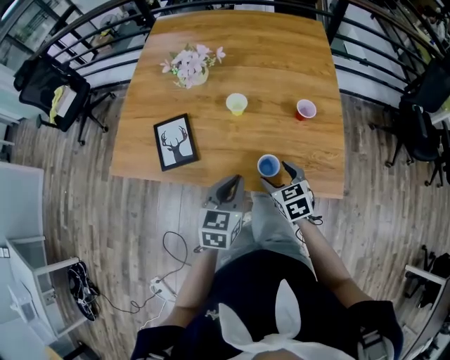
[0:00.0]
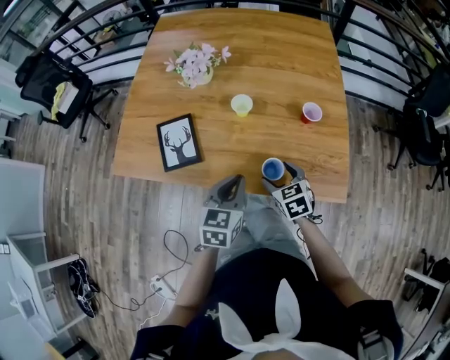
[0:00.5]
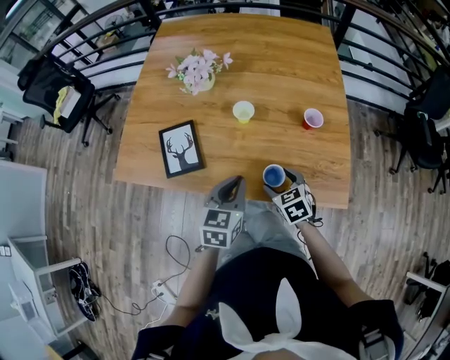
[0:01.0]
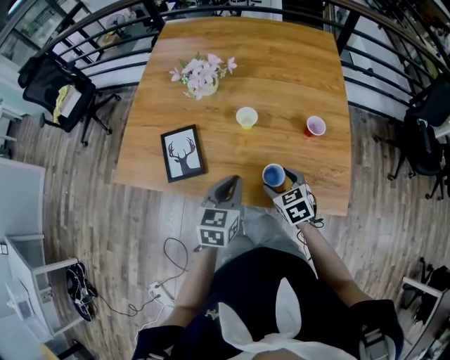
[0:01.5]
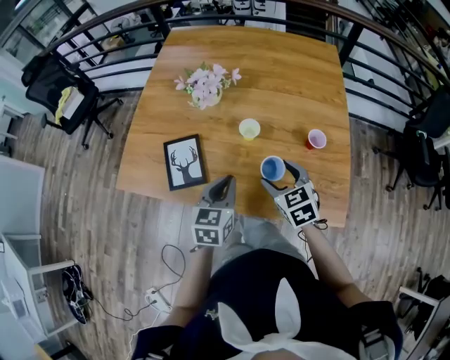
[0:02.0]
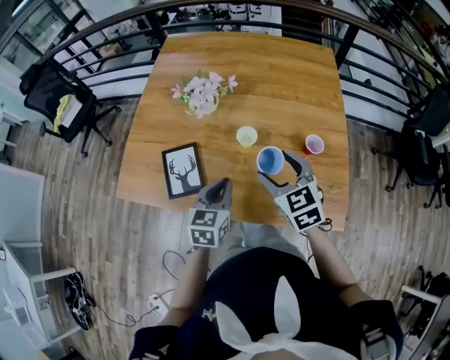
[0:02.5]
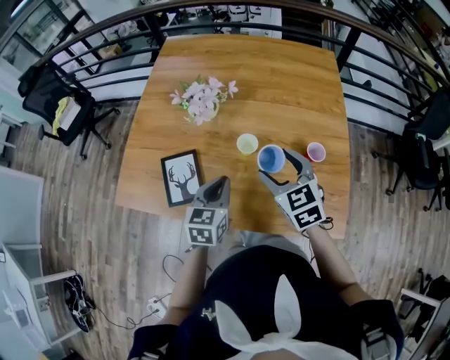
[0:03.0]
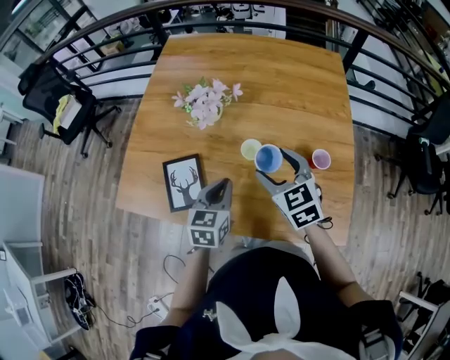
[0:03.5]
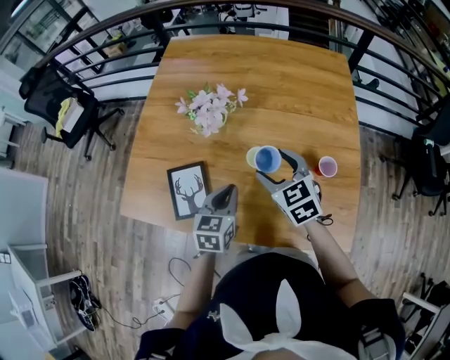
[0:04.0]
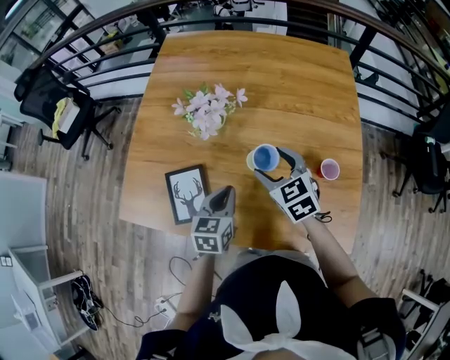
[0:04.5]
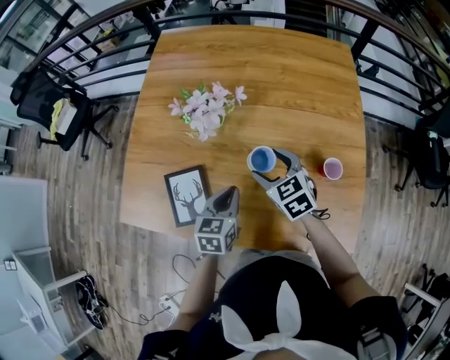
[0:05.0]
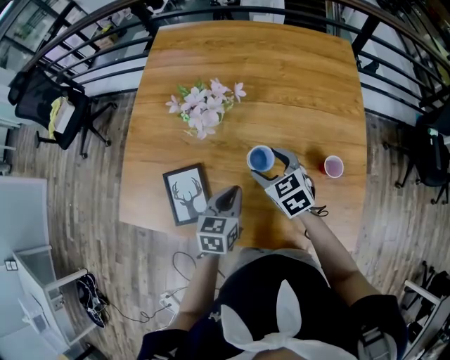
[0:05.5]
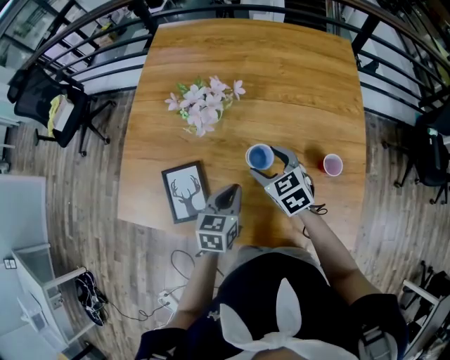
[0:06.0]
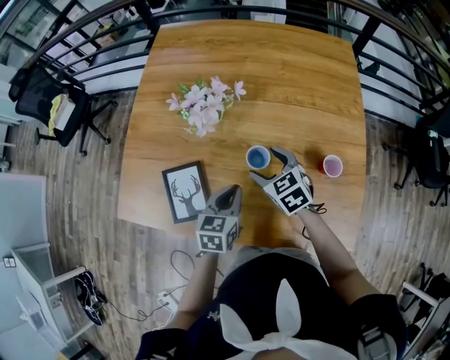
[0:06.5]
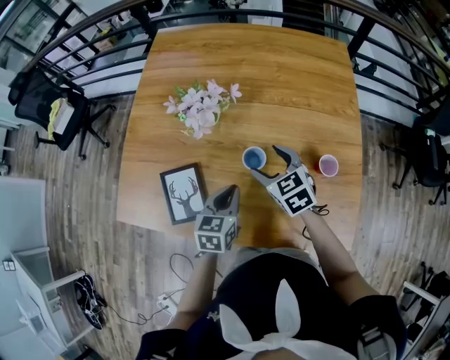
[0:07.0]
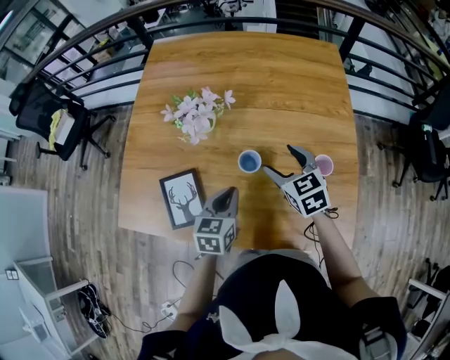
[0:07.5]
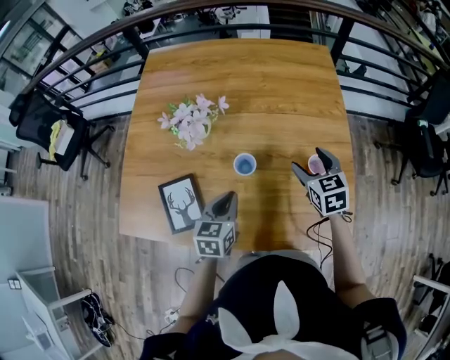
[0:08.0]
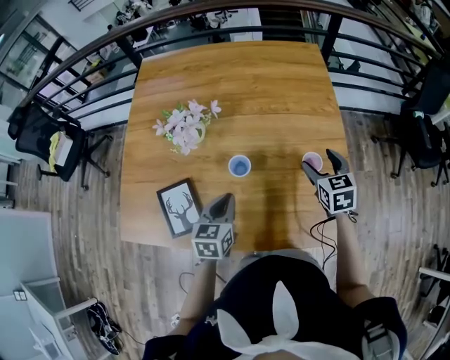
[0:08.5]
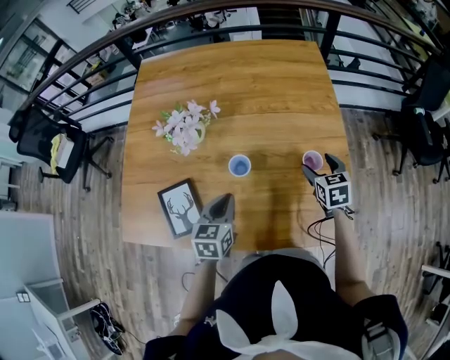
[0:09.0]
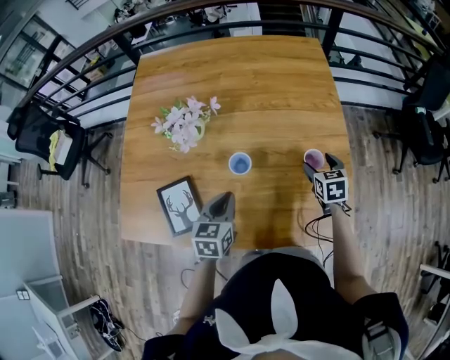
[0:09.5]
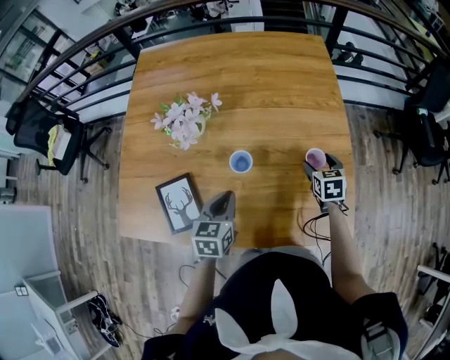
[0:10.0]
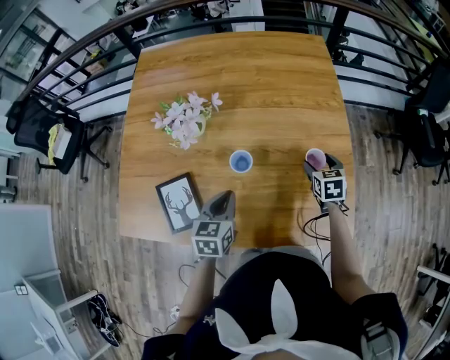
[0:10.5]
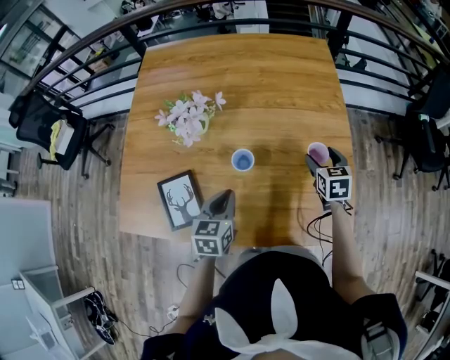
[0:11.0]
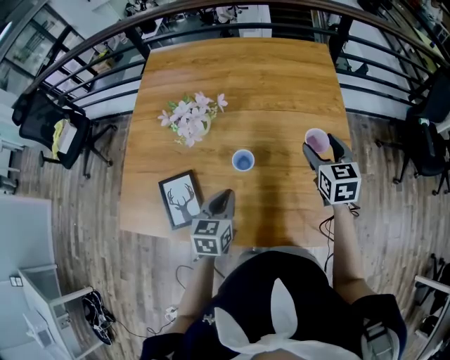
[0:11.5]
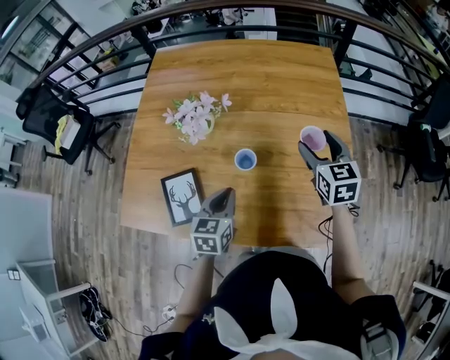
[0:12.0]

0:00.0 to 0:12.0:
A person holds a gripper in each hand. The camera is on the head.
0:00.0 to 0:02.0: The left gripper travels forward and to the left by roughly 10 cm, while the right gripper is displaced forward and upward by approximately 10 cm.
0:02.0 to 0:04.0: Both grippers move forward, approximately 10 cm.
0:04.0 to 0:06.0: The right gripper shifts about 10 cm downward. Meanwhile the left gripper changes place by roughly 5 cm.
0:06.0 to 0:08.0: The right gripper is displaced to the right by approximately 20 cm, and rotates about 20 degrees.
0:08.0 to 0:10.0: The right gripper heads downward and to the right, covering about 15 cm.
0:10.0 to 0:12.0: The right gripper goes about 20 cm upward, and changes its angle by approximately 20 degrees.

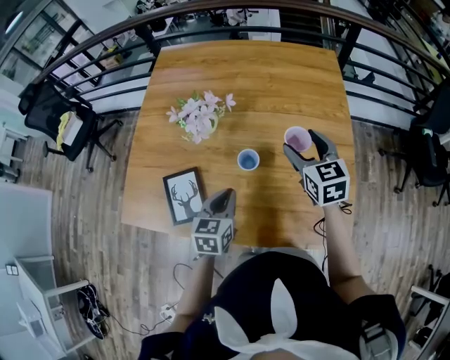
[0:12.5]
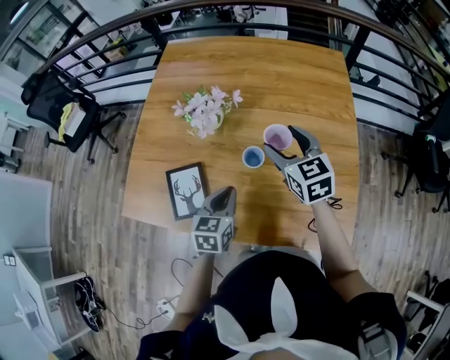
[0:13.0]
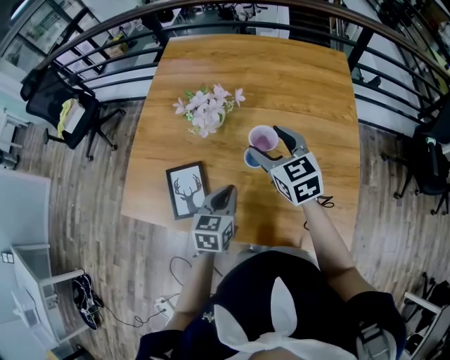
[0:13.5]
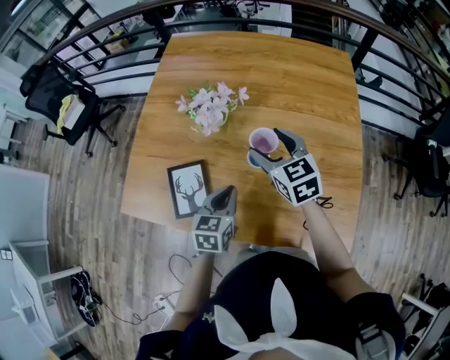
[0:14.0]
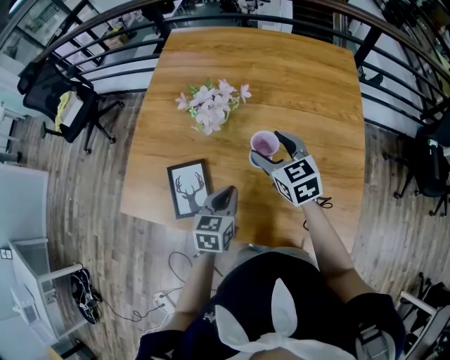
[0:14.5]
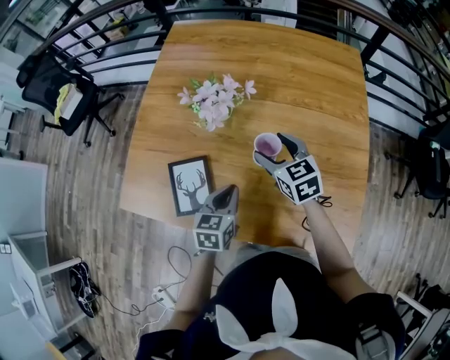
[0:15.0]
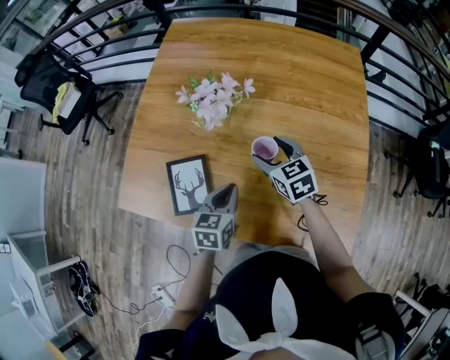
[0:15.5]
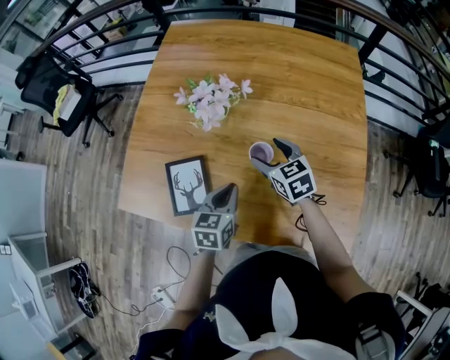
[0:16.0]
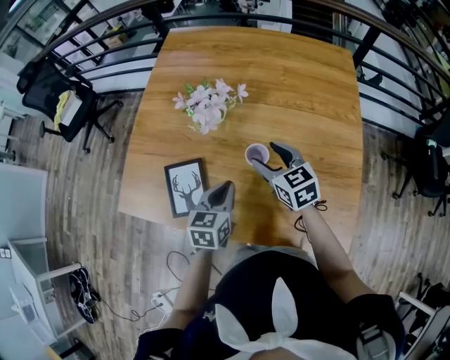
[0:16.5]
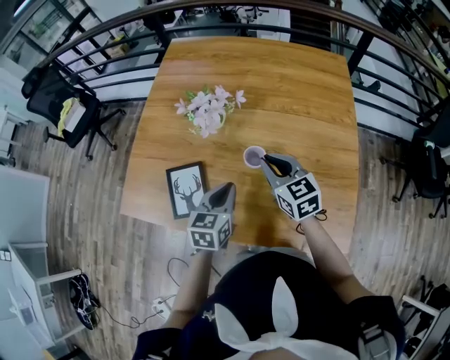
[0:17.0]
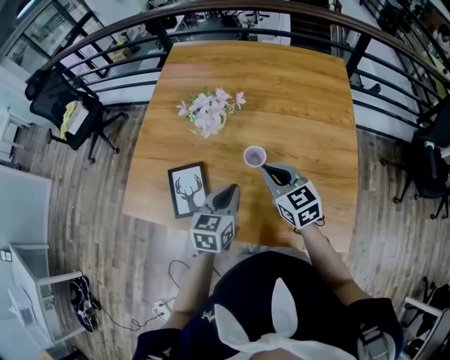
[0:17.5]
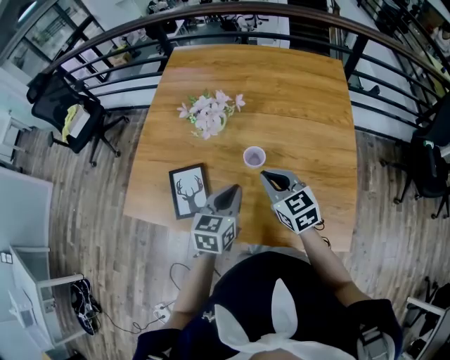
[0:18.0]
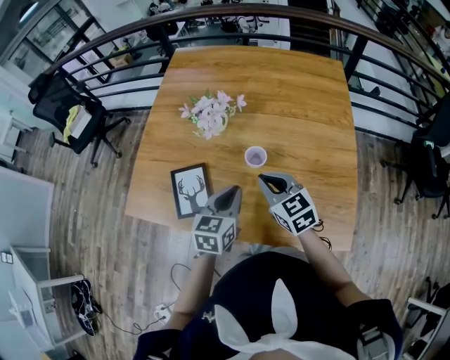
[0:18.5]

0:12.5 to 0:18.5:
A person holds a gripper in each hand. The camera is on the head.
0:12.5 to 0:14.5: The right gripper moves to the left, approximately 15 cm.
0:16.5 to 0:18.5: The left gripper is displaced upward by some 5 cm. Meanwhile the right gripper heads backward, covering some 10 cm, and closes up.

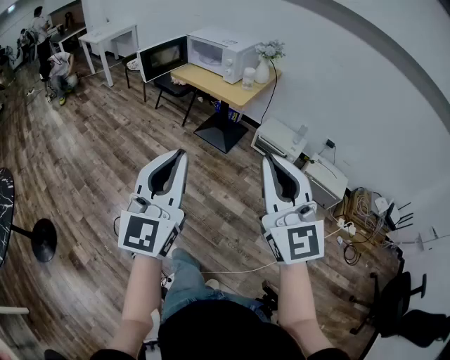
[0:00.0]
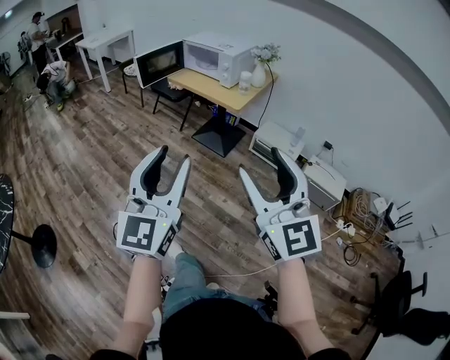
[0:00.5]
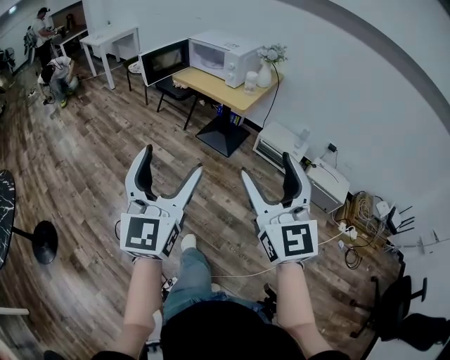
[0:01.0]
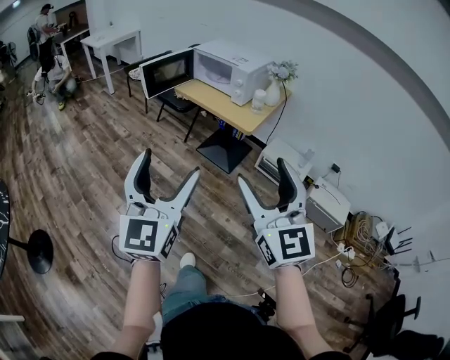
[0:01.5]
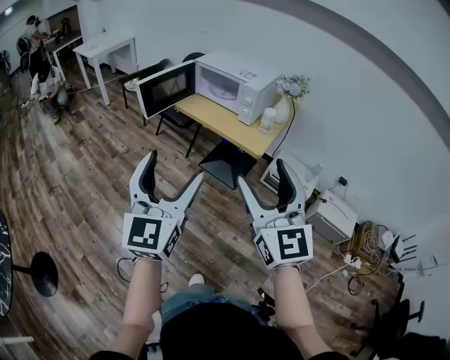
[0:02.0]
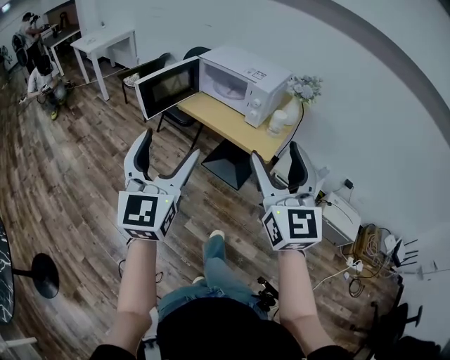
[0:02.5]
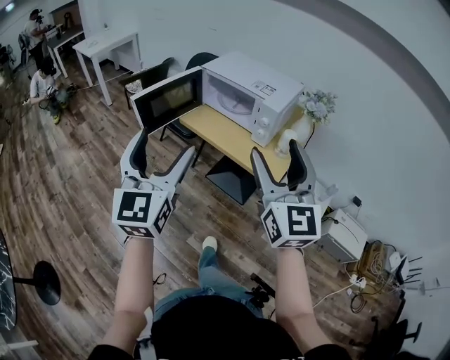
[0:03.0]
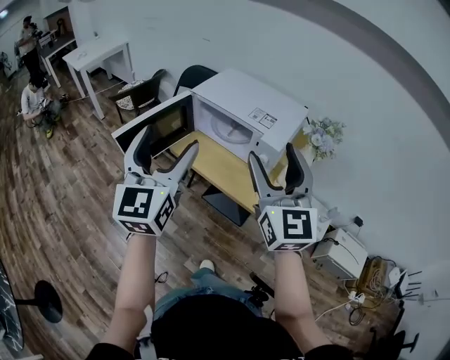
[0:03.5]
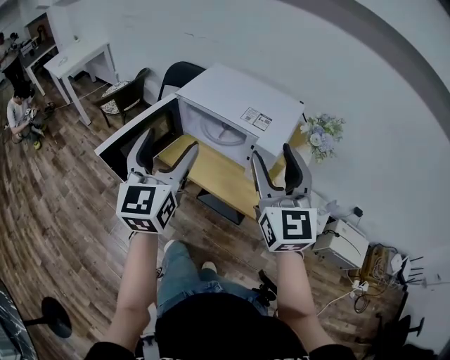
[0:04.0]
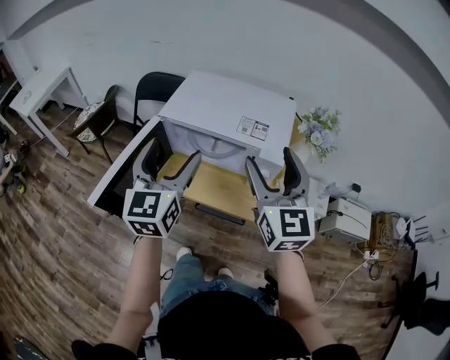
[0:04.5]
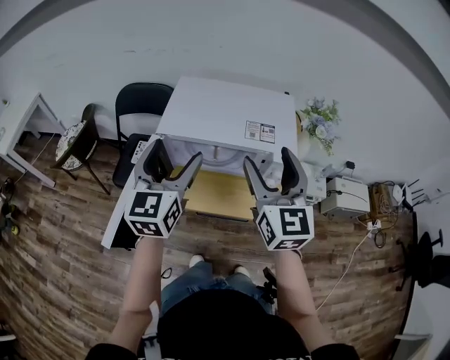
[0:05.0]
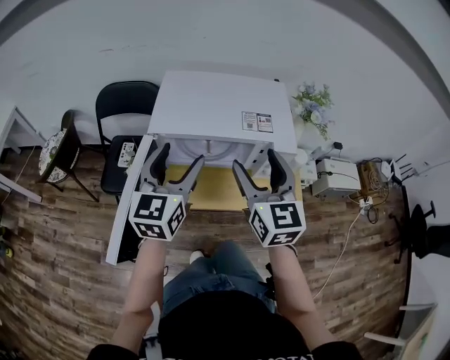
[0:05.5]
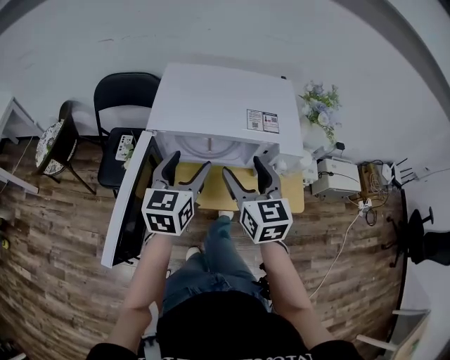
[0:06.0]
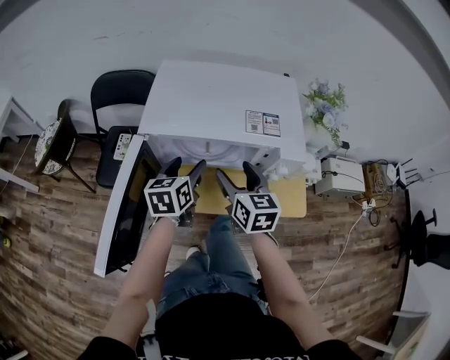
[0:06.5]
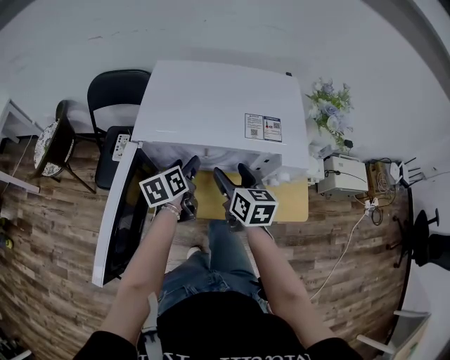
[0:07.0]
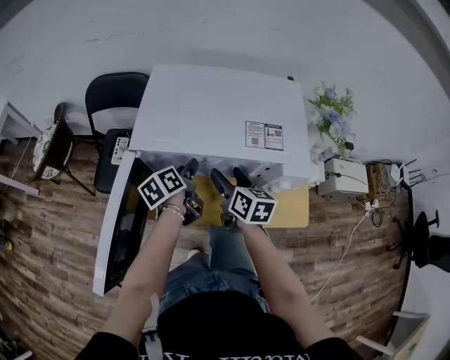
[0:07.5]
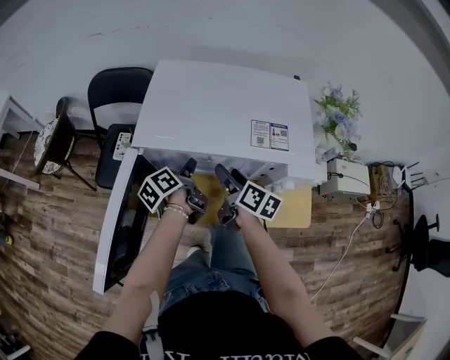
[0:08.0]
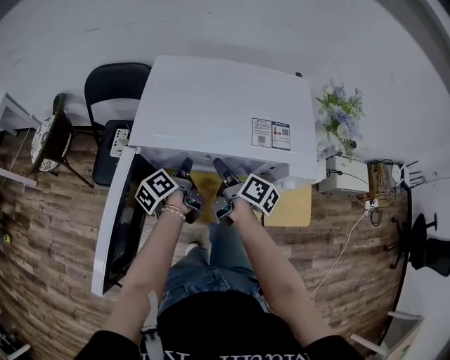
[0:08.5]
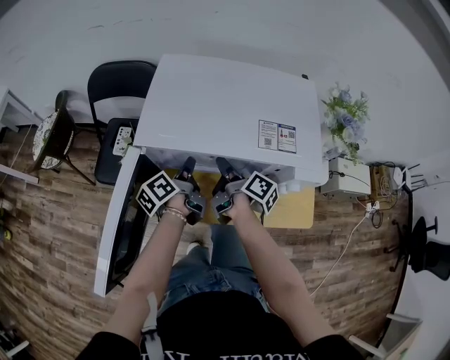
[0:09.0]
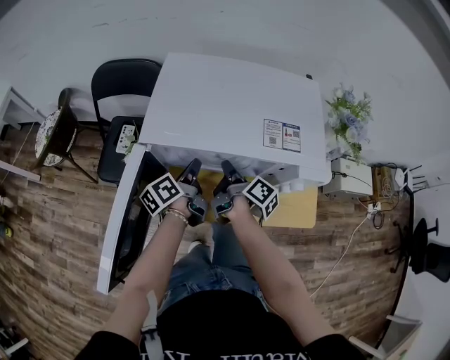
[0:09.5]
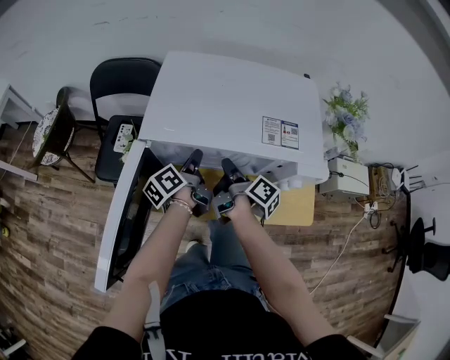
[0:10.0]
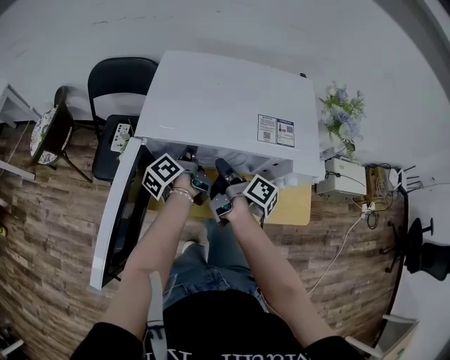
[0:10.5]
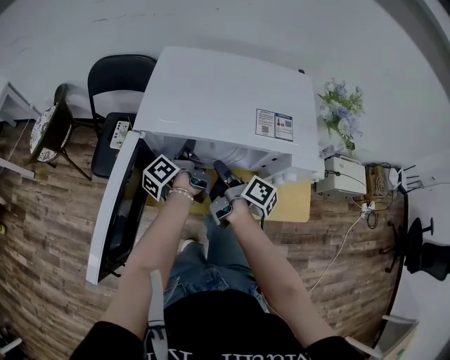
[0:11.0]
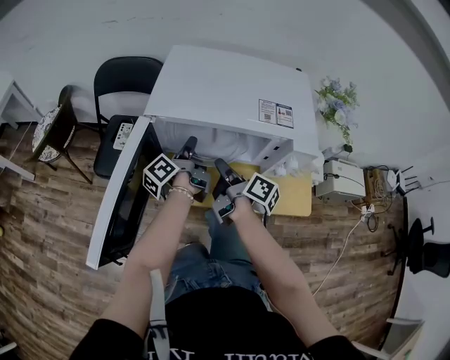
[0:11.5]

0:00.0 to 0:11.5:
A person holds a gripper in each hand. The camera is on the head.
0:00.0 to 0:02.0: Both grippers travel together forward, roughly 30 cm. The right gripper opens up. Meanwhile the left gripper opens its fingers.
0:02.0 to 0:04.0: The two grippers travel together, forward, roughly 50 cm.
0:04.0 to 0:06.0: The right gripper ends up some 25 cm from where it was, and turns by approximately 30 degrees. The left gripper ends up approximately 25 cm from where it was, and rotates about 40 degrees.
0:06.0 to 0:07.5: The grippers both shift downward and forward by some 20 cm. The right gripper changes its angle by about 30 degrees. Meanwhile the left gripper rolls counterclockwise, seen from behind, by roughly 50 degrees.
0:07.5 to 0:09.5: The left gripper closes up. Meanwhile the right gripper rolls clockwise, seen from behind, by some 50 degrees, and closes up.
0:09.5 to 0:11.5: The left gripper turns by some 20 degrees. Meanwhile the right gripper shifts approximately 5 cm backward.
